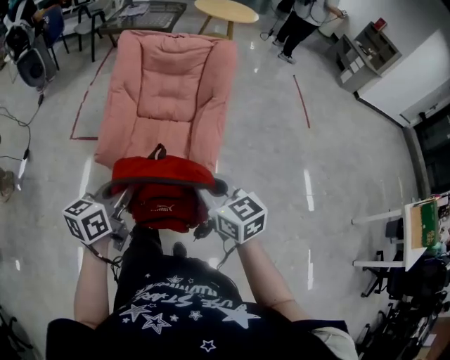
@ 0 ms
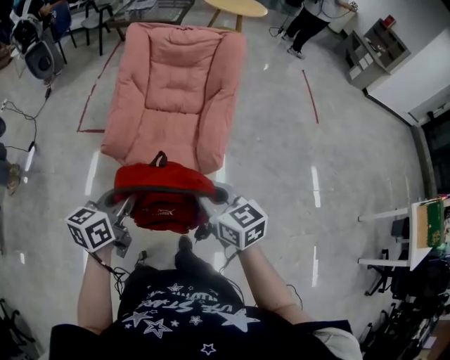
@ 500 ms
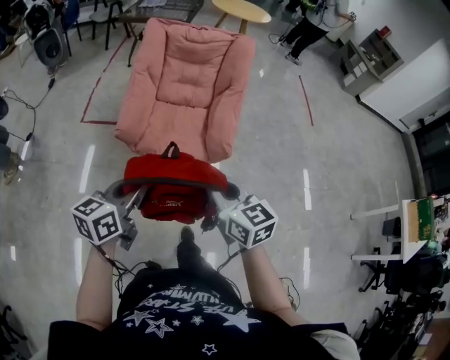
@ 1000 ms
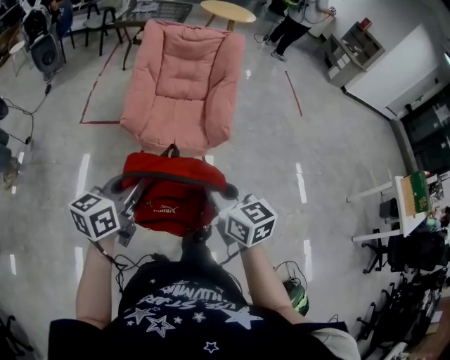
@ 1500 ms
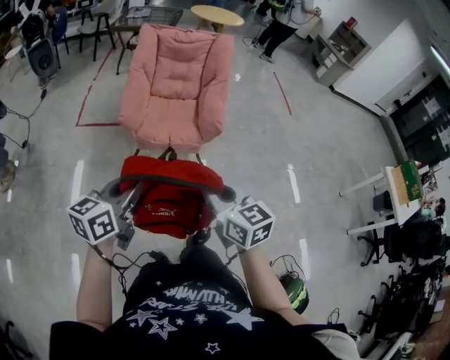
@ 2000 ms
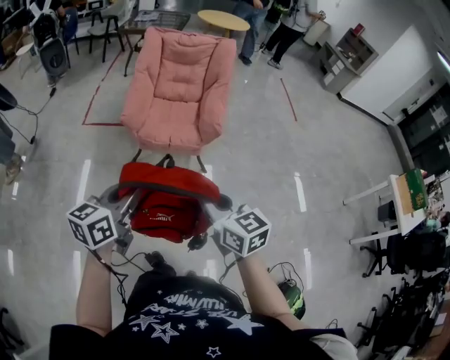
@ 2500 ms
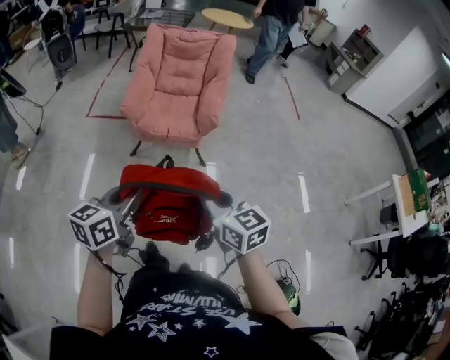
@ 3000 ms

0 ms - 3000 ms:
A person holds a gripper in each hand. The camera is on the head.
0 ms - 1500 ms: Both grippers travel together backward and to the left, some 25 cm.
1500 ms - 3000 ms: The two grippers go approximately 20 cm backward and to the right.

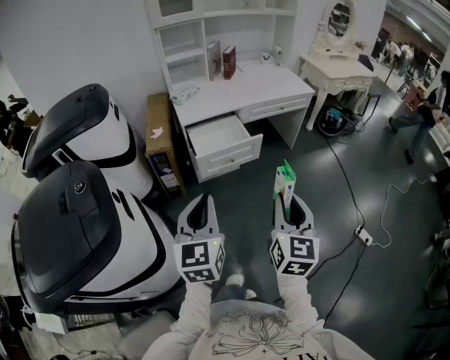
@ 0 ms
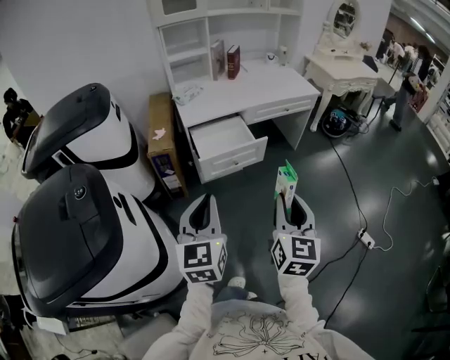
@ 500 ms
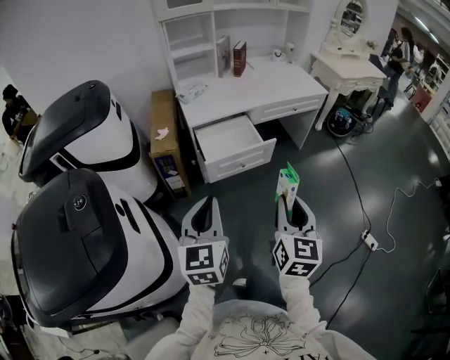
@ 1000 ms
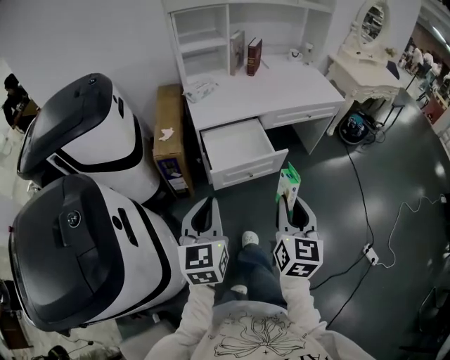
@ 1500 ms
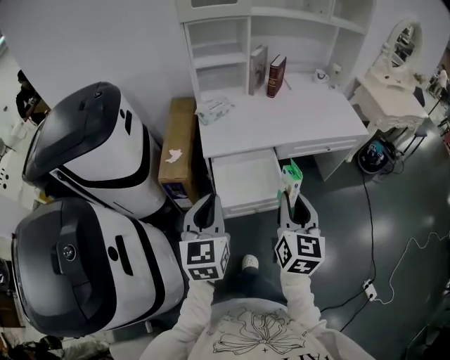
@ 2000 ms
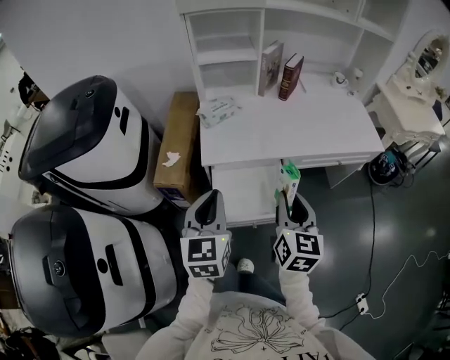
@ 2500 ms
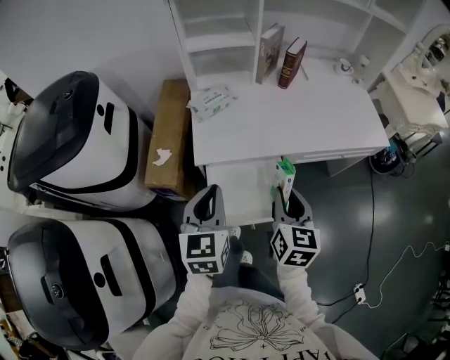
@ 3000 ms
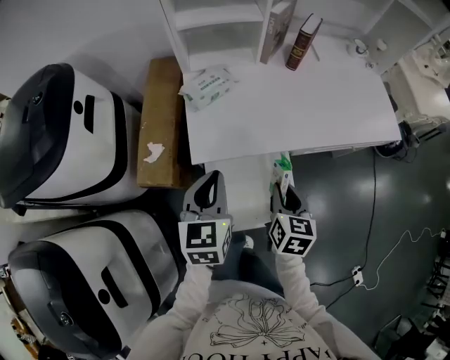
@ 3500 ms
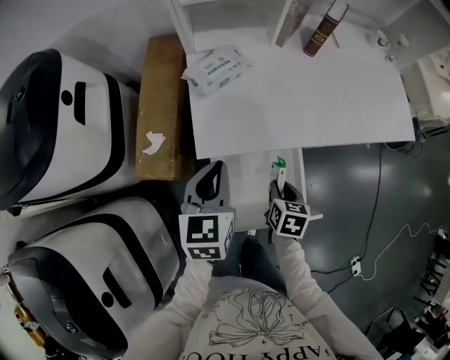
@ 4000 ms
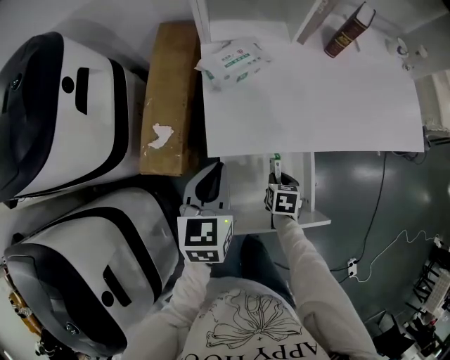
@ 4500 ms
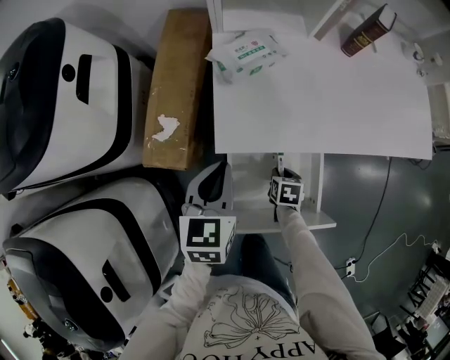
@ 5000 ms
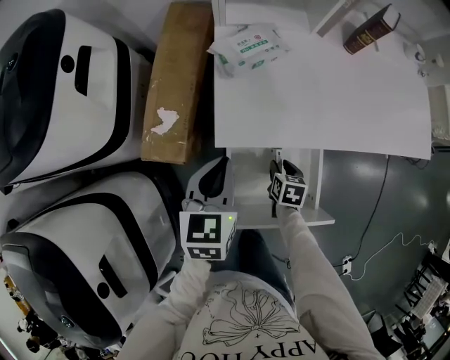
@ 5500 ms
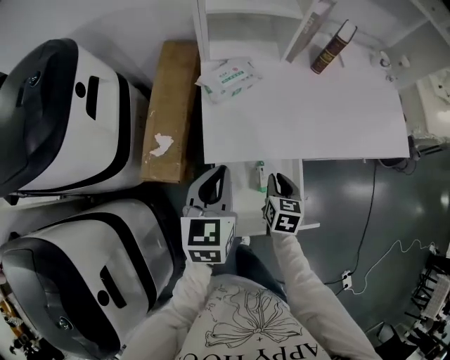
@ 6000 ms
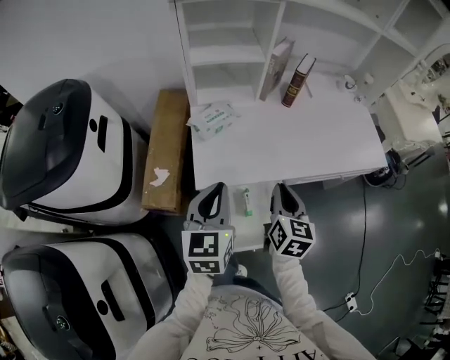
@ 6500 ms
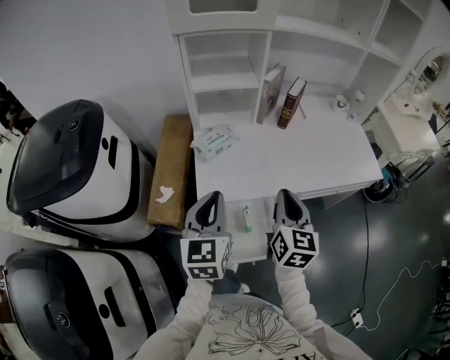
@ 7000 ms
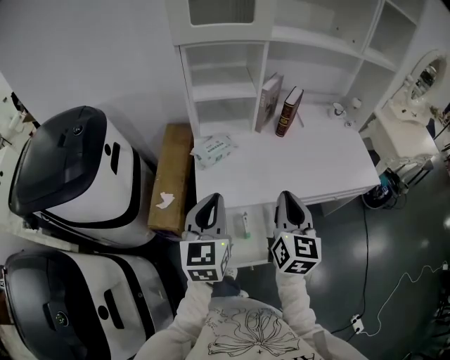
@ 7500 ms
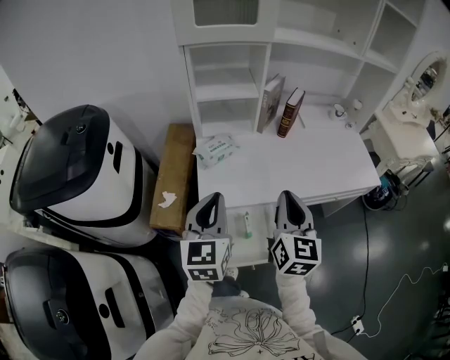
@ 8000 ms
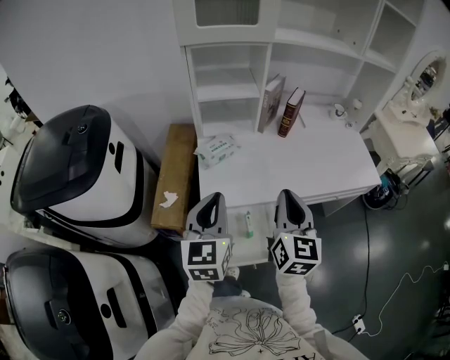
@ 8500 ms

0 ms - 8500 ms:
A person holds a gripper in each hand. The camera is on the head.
0 ms - 2000 ms: The grippers both shift forward by approximately 35 cm.
2000 ms - 4000 ms: The right gripper travels downward and forward by some 40 cm, and tips its fingers downward by approximately 40 degrees. Meanwhile the left gripper moves forward and downward, some 35 cm.
4000 ms - 6500 ms: The left gripper heads upward, covering roughly 10 cm. Meanwhile the right gripper goes approximately 20 cm upward, and points its fingers approximately 30 degrees further upward.
6500 ms - 8500 ms: The left gripper is displaced upward by about 10 cm; the right gripper travels upward by roughly 15 cm.

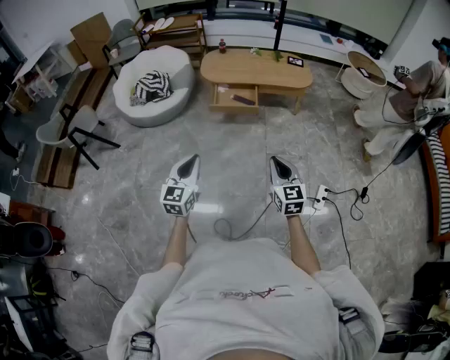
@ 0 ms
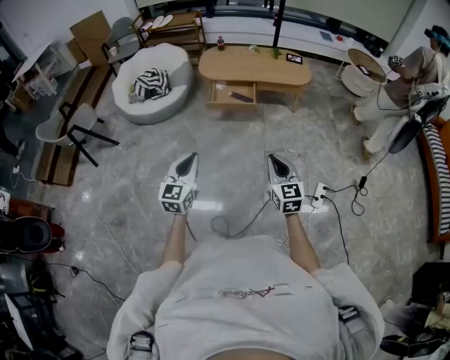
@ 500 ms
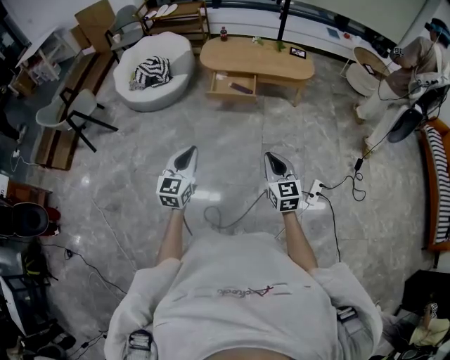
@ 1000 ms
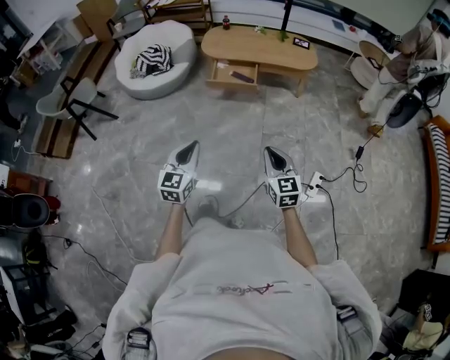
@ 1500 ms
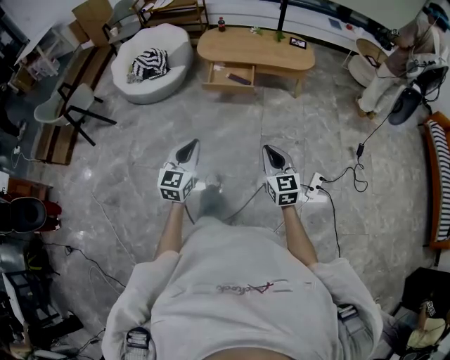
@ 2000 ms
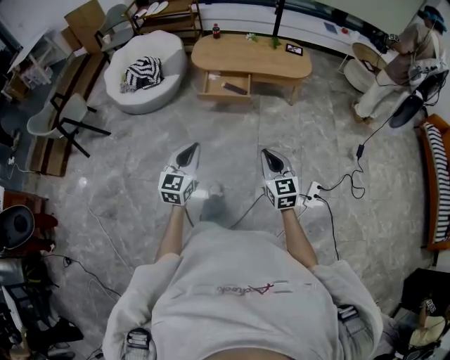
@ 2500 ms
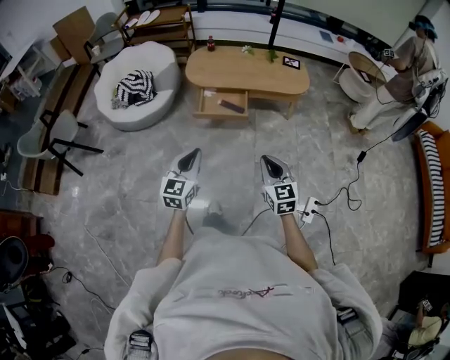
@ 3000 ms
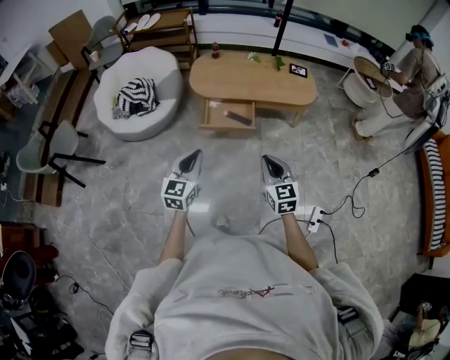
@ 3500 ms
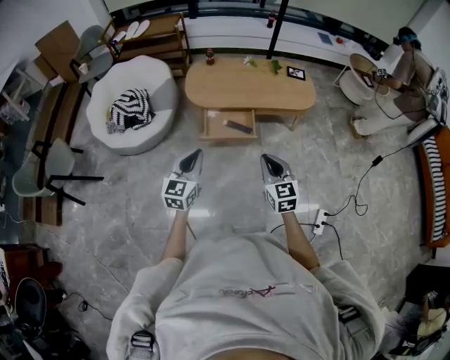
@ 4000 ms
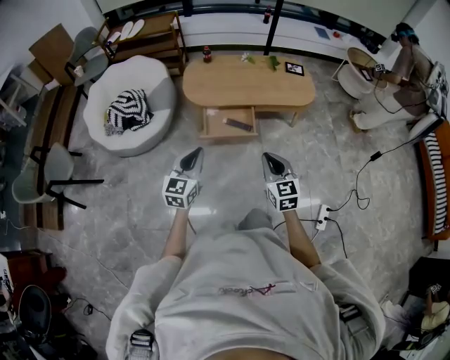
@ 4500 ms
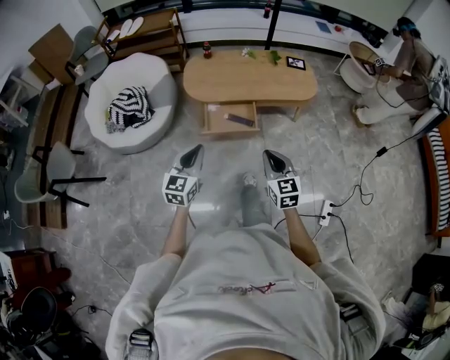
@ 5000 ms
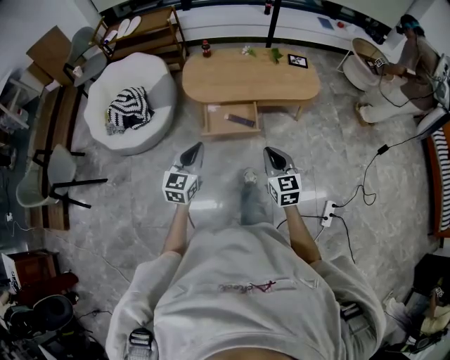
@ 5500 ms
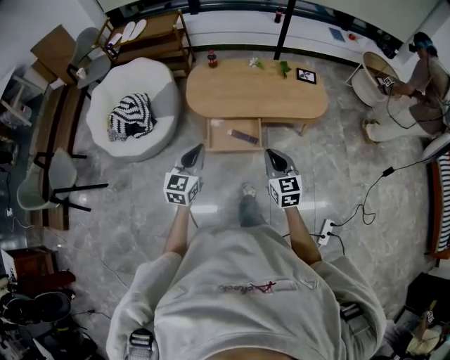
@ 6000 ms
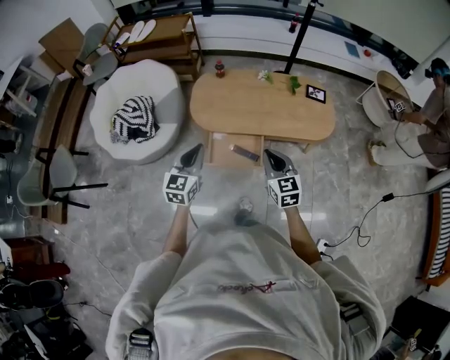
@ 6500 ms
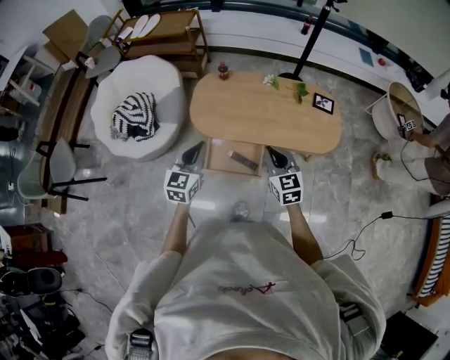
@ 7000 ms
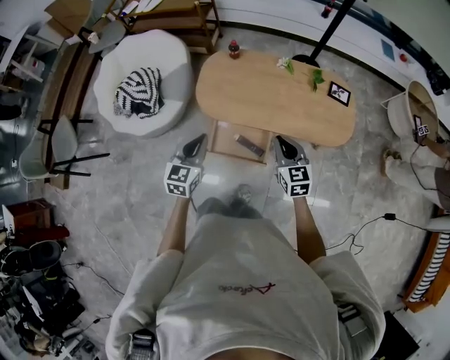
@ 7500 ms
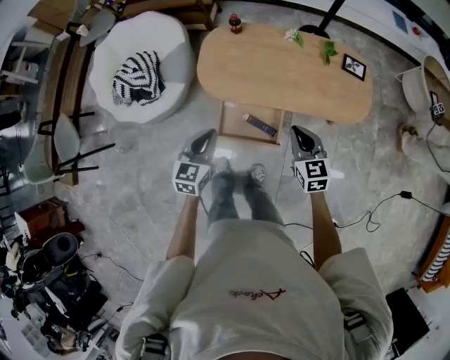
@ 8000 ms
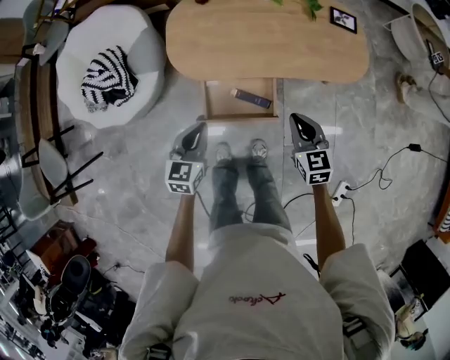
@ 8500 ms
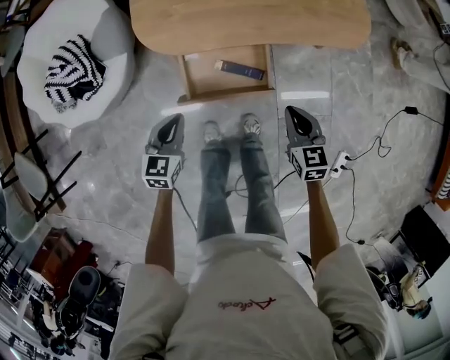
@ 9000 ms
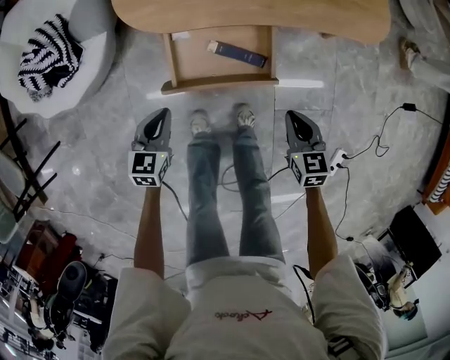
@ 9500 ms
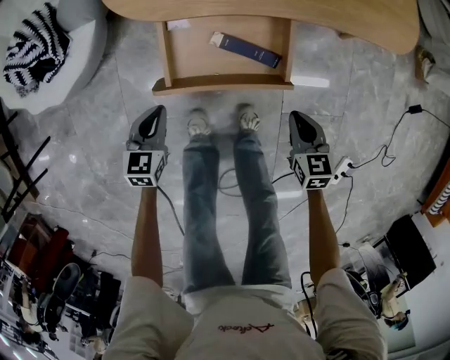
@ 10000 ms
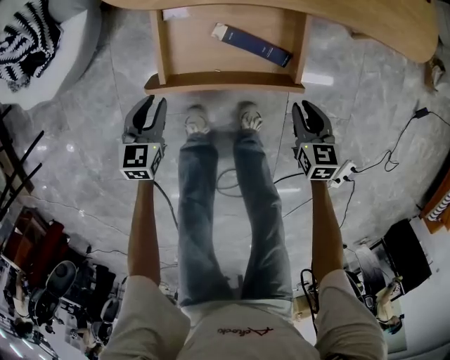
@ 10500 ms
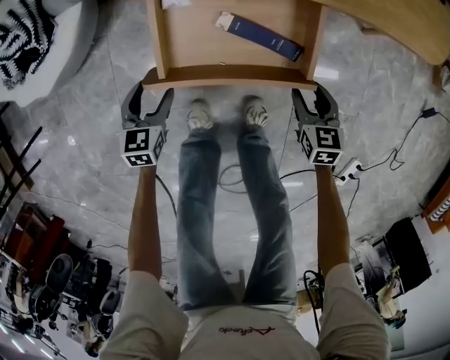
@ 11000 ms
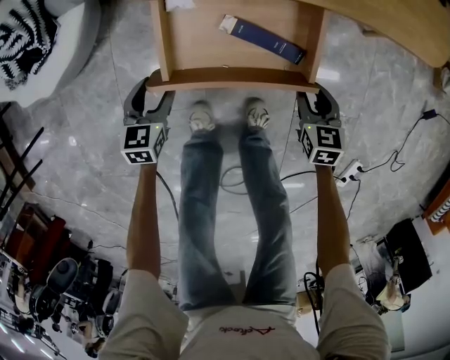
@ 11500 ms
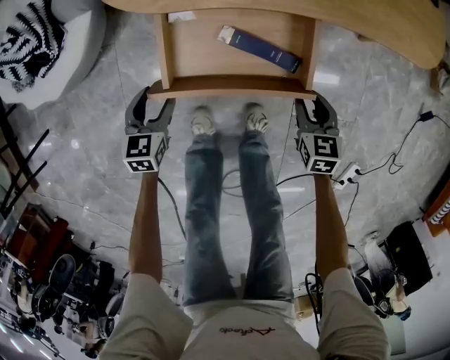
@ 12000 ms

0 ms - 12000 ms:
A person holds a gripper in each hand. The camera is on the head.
0 ms - 2000 ms: Both grippers travel together to the right, some 10 cm.
2000 ms - 4000 ms: The pair of grippers is taken forward, about 50 cm.
4000 ms - 6000 ms: Both grippers travel together forward, about 15 cm.
6000 ms - 8000 ms: The left gripper moves forward and downward, approximately 25 cm. The right gripper is displaced forward by some 30 cm.
8000 ms - 10000 ms: Both grippers travel together downward, about 50 cm. The right gripper turns by some 30 degrees.
10000 ms - 12000 ms: The right gripper travels downward and forward by roughly 10 cm, and opens up. Meanwhile the left gripper heads downward, covering some 10 cm, and opens.

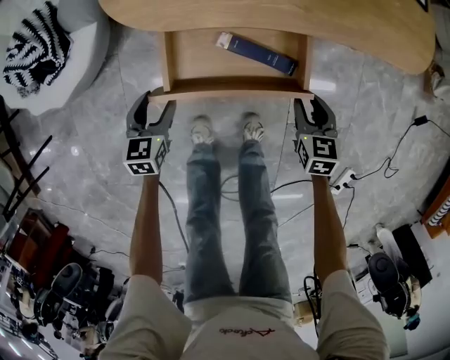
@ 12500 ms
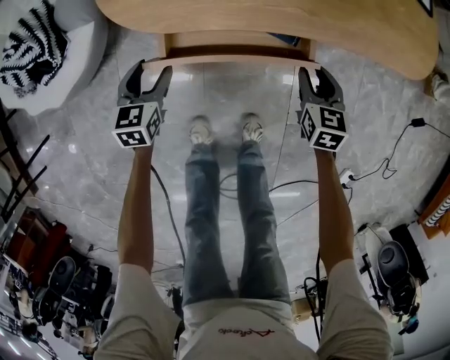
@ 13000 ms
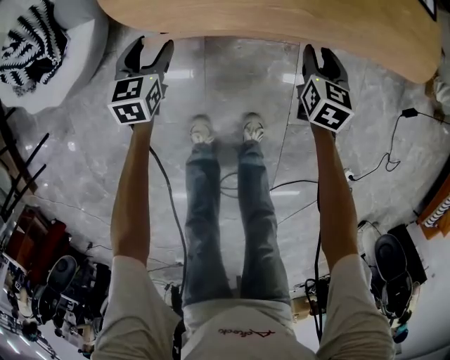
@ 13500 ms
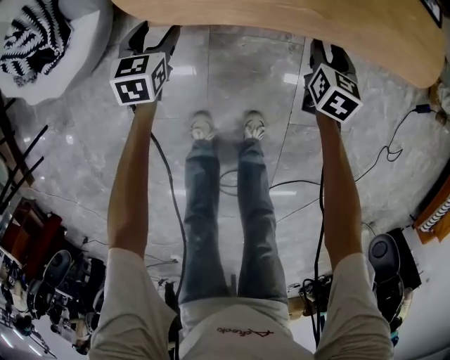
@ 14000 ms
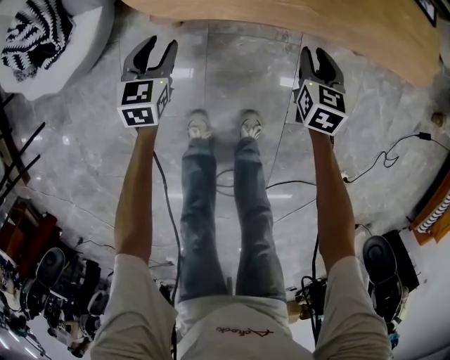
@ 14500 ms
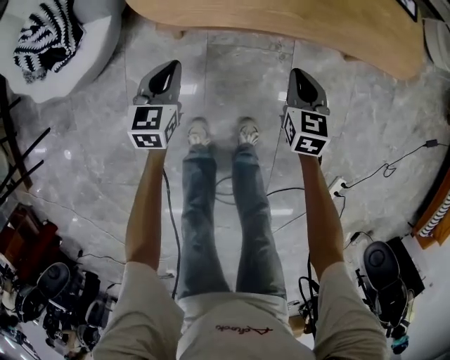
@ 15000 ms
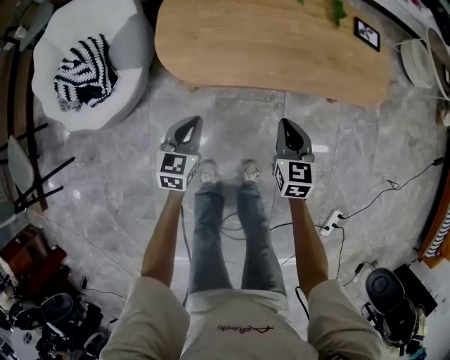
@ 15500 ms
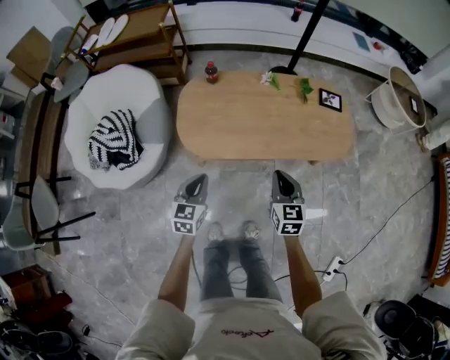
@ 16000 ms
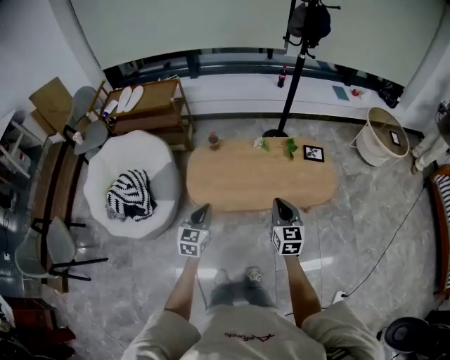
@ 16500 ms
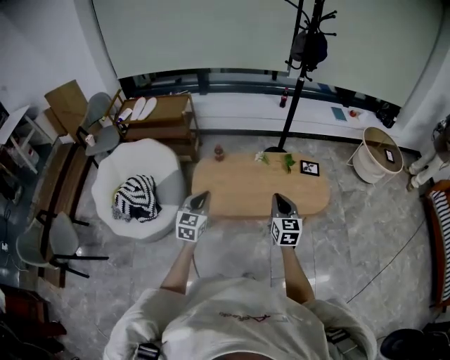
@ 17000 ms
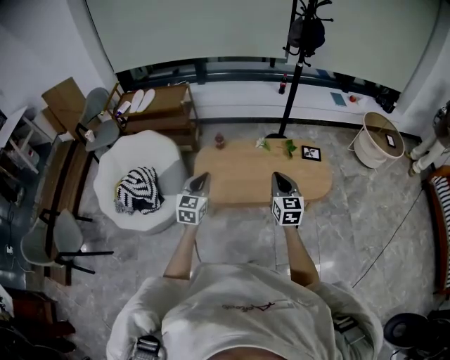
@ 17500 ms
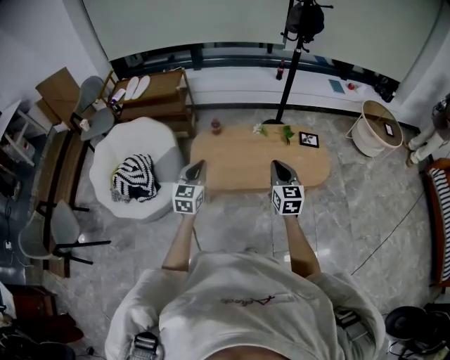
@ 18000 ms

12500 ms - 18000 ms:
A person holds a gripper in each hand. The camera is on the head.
12500 ms - 14500 ms: The two grippers go roughly 10 cm forward.
14500 ms - 16000 ms: The grippers both shift upward by roughly 40 cm. The left gripper closes up; the right gripper closes its fingers.
16000 ms - 18000 ms: Both grippers move upward, roughly 30 cm.
